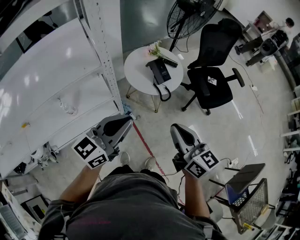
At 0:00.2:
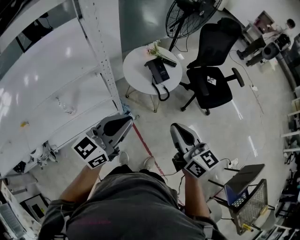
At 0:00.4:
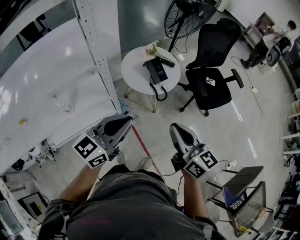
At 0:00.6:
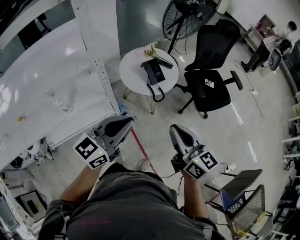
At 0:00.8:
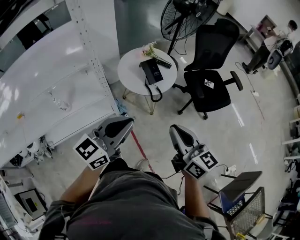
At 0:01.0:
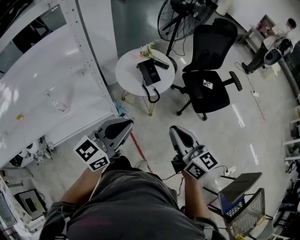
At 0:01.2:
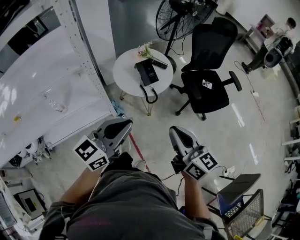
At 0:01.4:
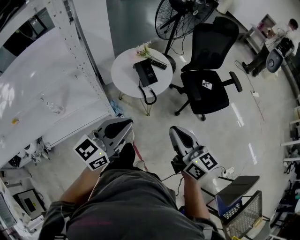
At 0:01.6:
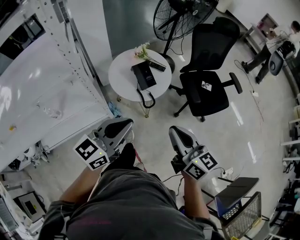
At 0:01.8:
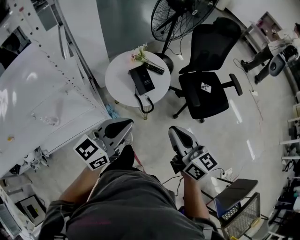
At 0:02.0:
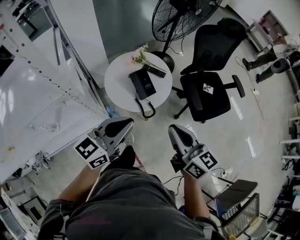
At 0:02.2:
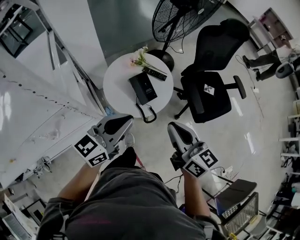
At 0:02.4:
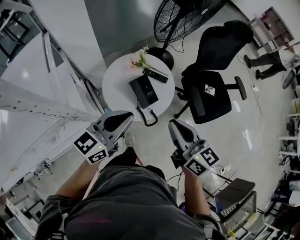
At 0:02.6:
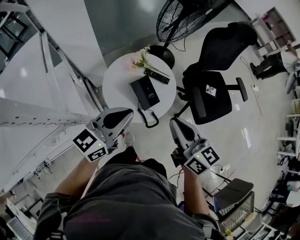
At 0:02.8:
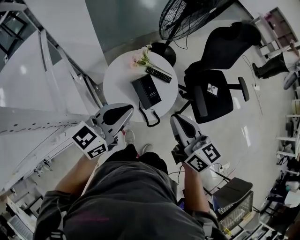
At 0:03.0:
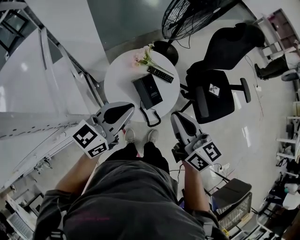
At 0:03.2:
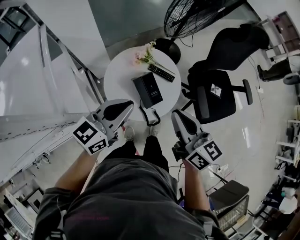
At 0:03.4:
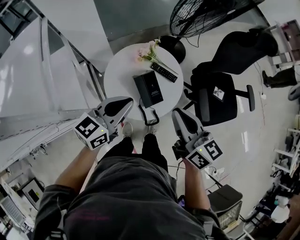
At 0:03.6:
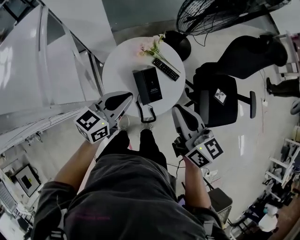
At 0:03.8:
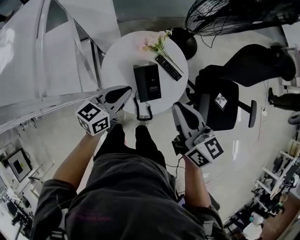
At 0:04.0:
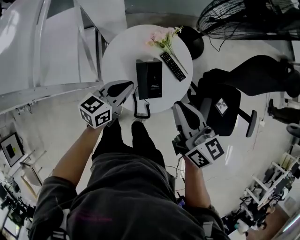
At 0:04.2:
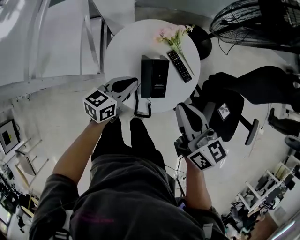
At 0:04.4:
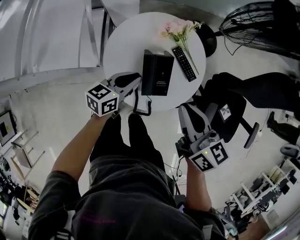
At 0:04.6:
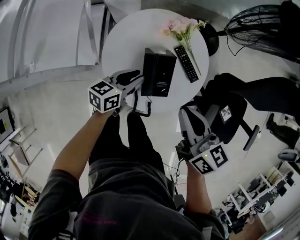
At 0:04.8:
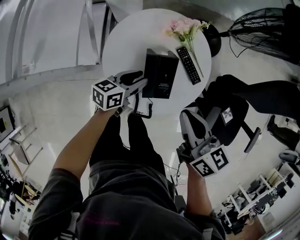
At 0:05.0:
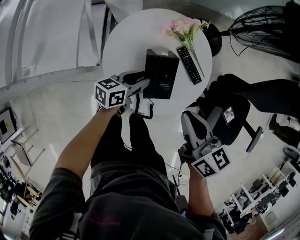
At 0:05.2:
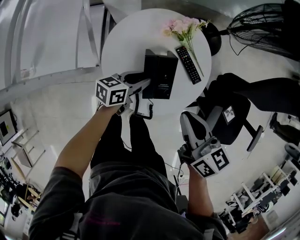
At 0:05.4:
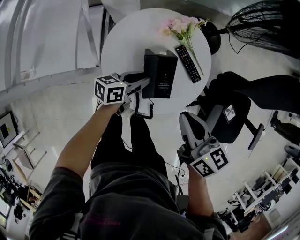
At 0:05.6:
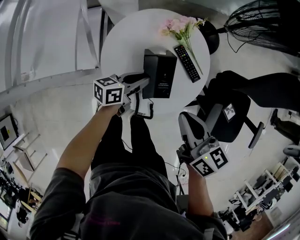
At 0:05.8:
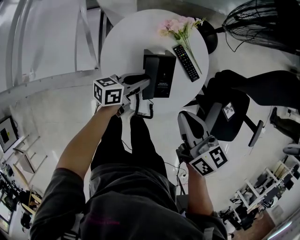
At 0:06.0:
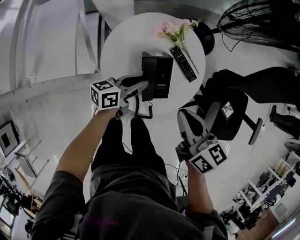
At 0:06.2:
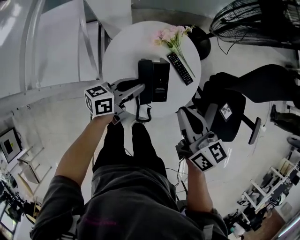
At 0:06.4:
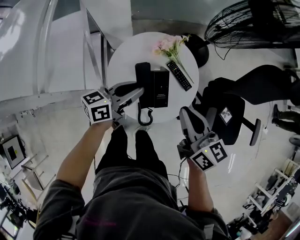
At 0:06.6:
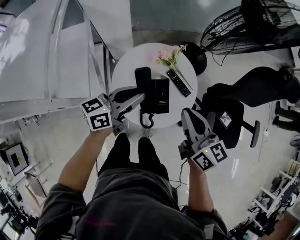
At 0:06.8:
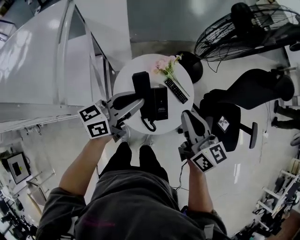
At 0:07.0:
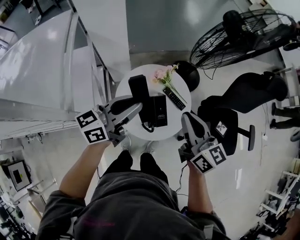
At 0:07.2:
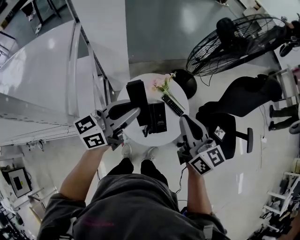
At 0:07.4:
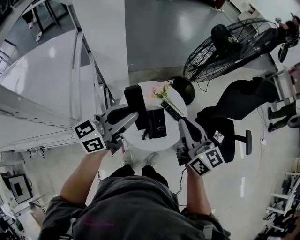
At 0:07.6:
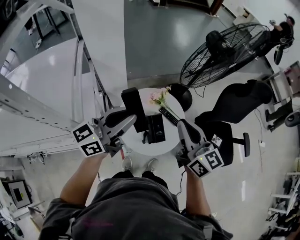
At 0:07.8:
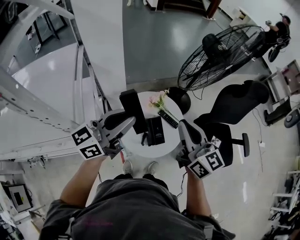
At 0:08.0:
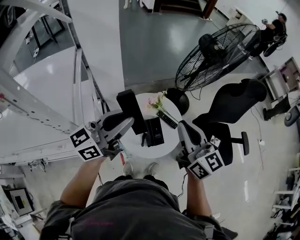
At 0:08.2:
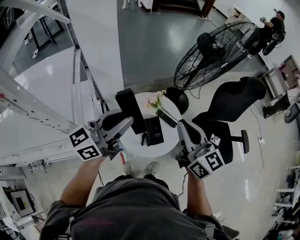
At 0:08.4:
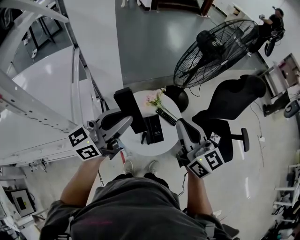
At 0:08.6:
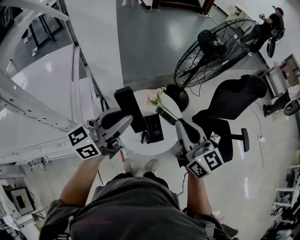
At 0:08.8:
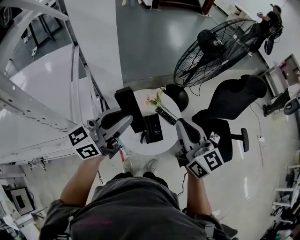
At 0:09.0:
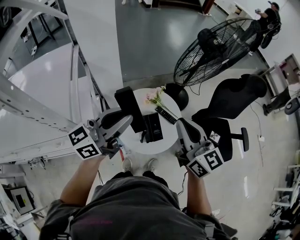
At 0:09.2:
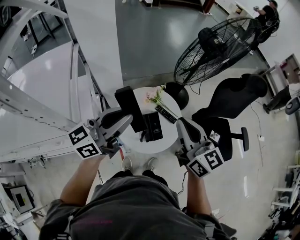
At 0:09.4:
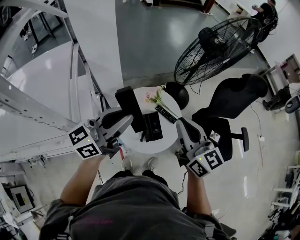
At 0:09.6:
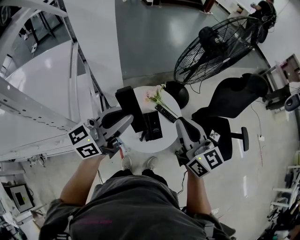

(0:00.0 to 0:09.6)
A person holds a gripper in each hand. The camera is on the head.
0:00.0 - 0:01.6: The grippers both shift to the right and forward by some 15 cm.
0:01.6 - 0:03.2: Both grippers travel together forward, some 30 cm.
0:03.2 - 0:04.8: The right gripper goes some 20 cm downward and forward, and changes its angle by approximately 30 degrees. Meanwhile the left gripper shifts roughly 35 cm downward, swivels roughly 40 degrees, and opens.
0:04.8 - 0:06.4: The right gripper shifts about 5 cm upward; the left gripper shifts about 15 cm upward.
0:06.4 - 0:08.0: Both grippers travel together upward, about 25 cm. The left gripper swivels approximately 30 degrees, while the right gripper rotates roughly 30 degrees.
0:08.0 - 0:09.6: The grippers make only small movements.

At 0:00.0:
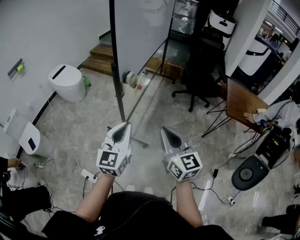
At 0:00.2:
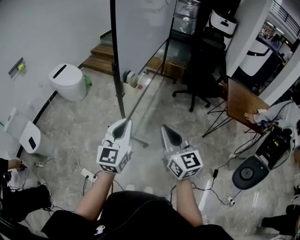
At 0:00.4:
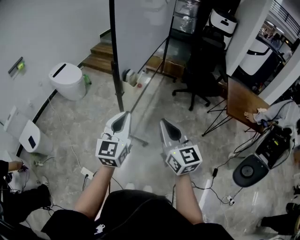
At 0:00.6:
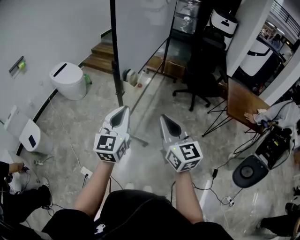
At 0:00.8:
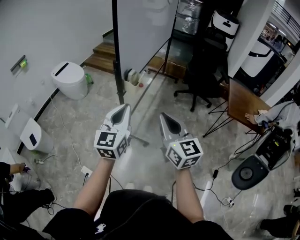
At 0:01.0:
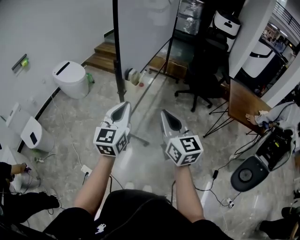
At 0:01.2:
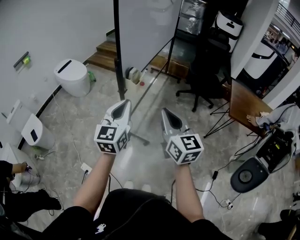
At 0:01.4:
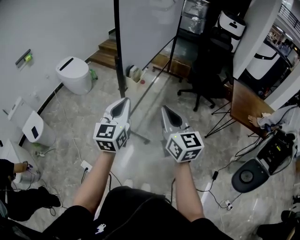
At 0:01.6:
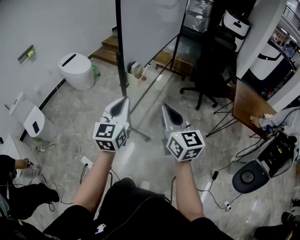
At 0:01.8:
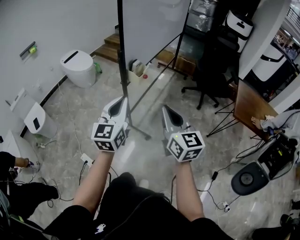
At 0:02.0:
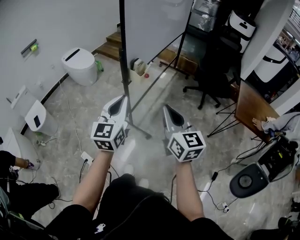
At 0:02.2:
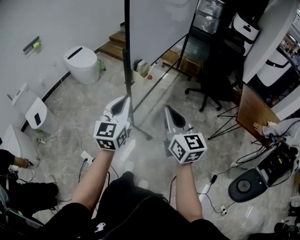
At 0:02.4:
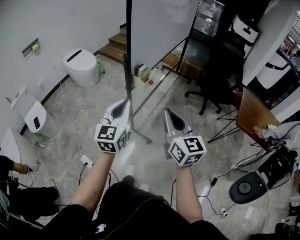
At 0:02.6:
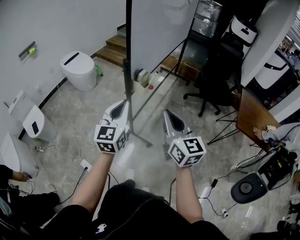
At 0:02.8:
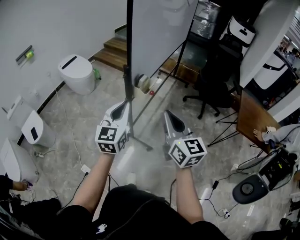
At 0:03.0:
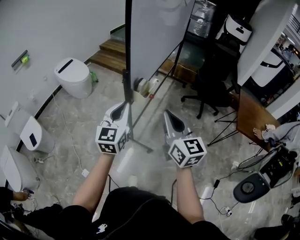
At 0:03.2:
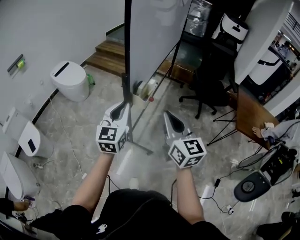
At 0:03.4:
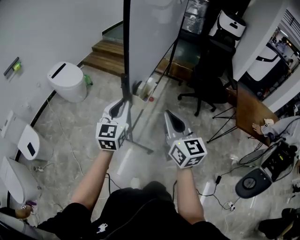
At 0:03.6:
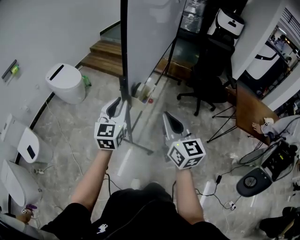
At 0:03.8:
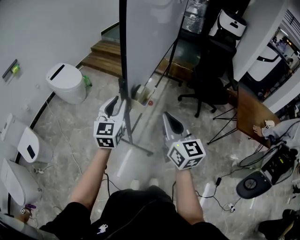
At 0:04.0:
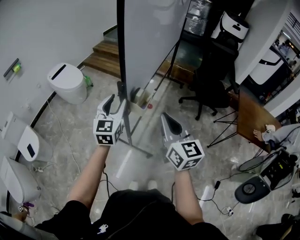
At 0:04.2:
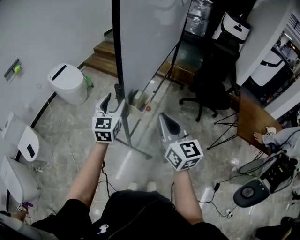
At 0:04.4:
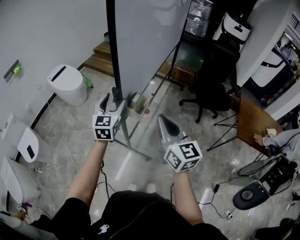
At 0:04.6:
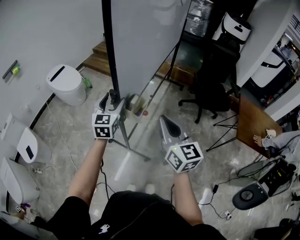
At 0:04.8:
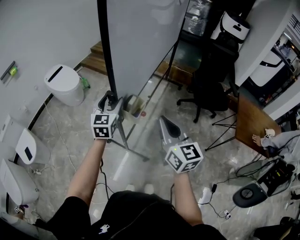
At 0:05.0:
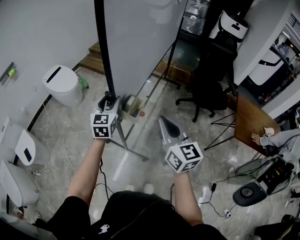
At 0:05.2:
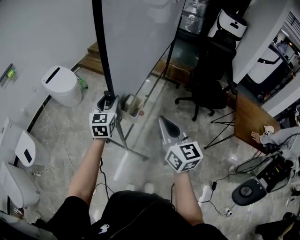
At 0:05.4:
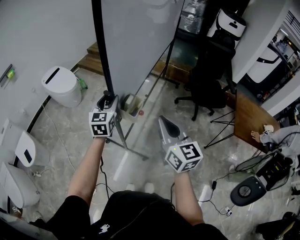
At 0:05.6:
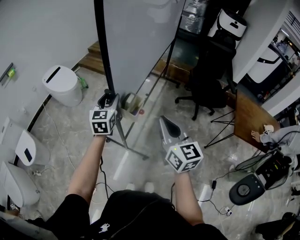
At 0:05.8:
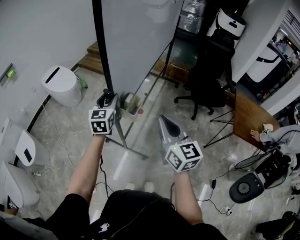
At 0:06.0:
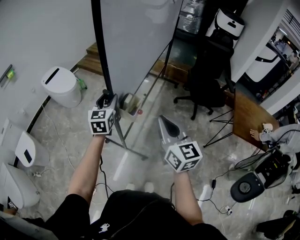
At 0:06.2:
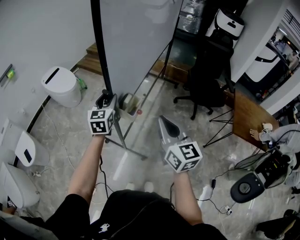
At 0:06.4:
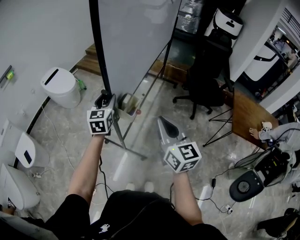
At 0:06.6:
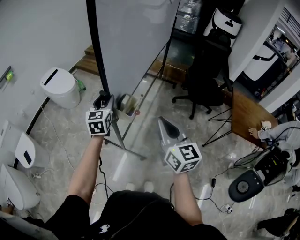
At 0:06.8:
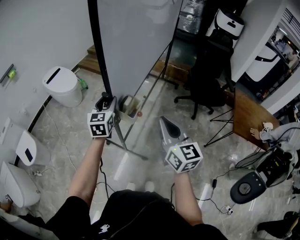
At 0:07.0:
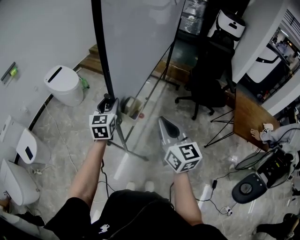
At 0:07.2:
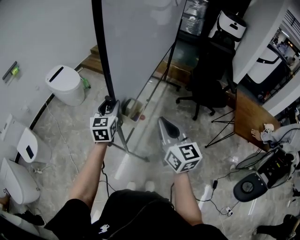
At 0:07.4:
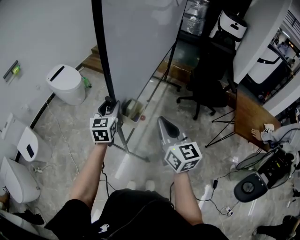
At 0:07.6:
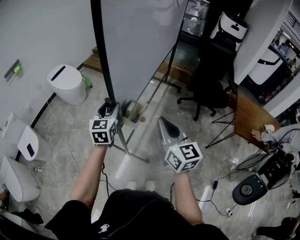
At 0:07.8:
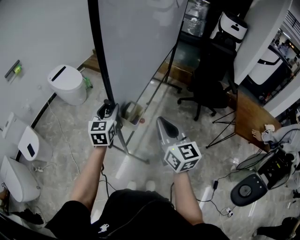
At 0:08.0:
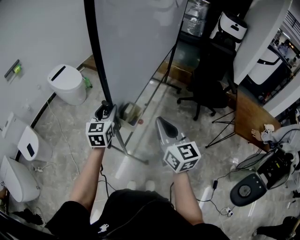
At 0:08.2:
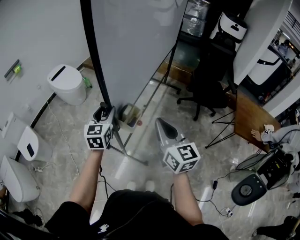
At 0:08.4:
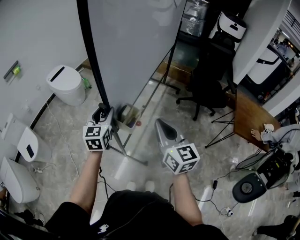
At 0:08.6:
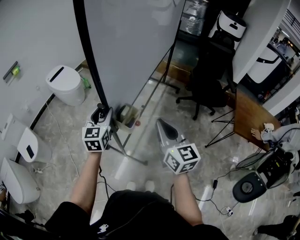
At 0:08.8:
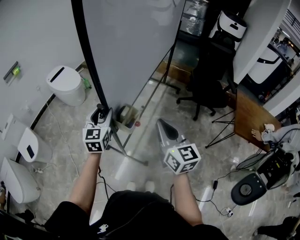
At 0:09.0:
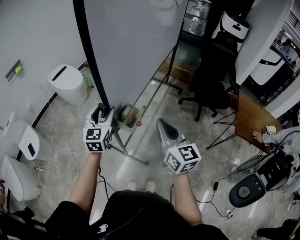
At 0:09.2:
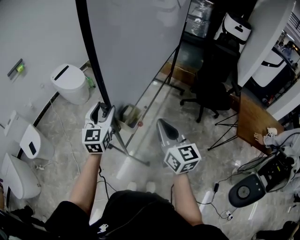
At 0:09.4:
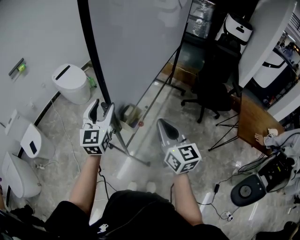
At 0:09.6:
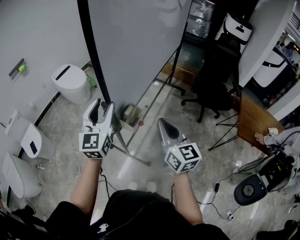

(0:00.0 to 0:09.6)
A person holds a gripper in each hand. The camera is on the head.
0:00.0 - 0:01.6: The right gripper shifts by some 5 cm.
0:01.6 - 0:03.2: The right gripper goes some 15 cm forward and to the left. Meanwhile the left gripper moves forward, some 15 cm.
0:03.2 - 0:04.8: The right gripper goes about 10 cm forward, while the left gripper heads forward, covering roughly 15 cm, and opens.
0:04.8 - 0:06.4: The grippers make only small movements.
0:06.4 - 0:08.0: The left gripper heads backward, covering roughly 10 cm.
0:08.0 - 0:09.6: The left gripper travels upward by approximately 10 cm.

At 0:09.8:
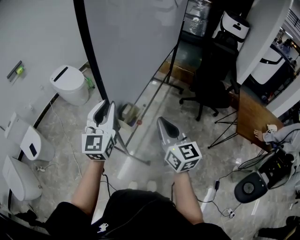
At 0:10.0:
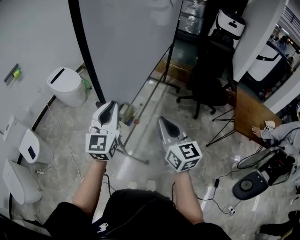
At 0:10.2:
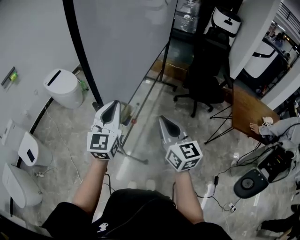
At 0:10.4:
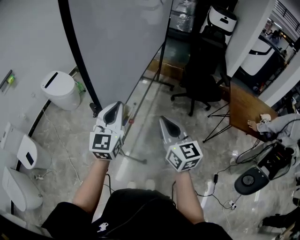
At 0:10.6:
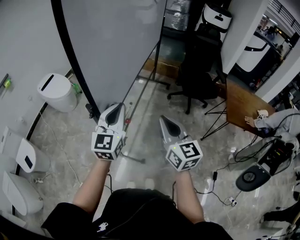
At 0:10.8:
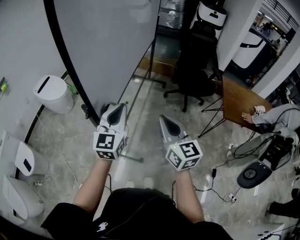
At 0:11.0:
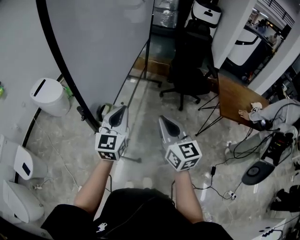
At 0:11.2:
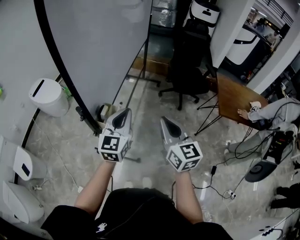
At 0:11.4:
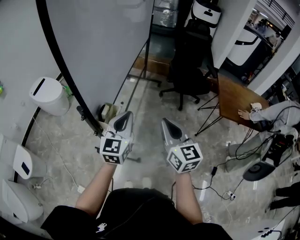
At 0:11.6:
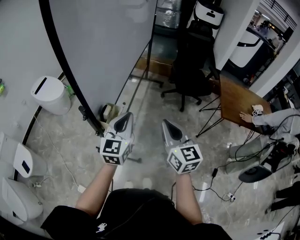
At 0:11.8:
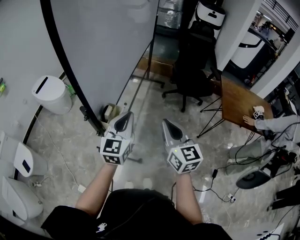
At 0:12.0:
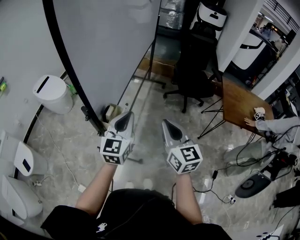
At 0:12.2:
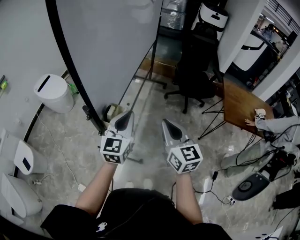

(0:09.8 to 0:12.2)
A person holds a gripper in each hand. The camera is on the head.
0:09.8 - 0:11.0: The left gripper shifts roughly 15 cm to the right. The right gripper is displaced to the right by roughly 10 cm.
0:11.0 - 0:12.2: There are only small adjustments of the grippers.

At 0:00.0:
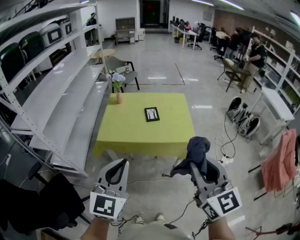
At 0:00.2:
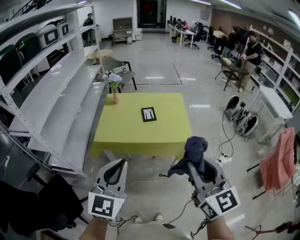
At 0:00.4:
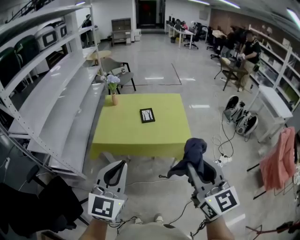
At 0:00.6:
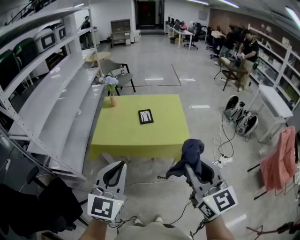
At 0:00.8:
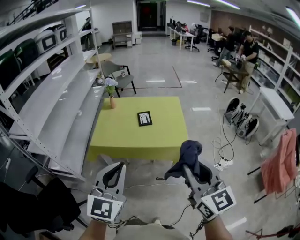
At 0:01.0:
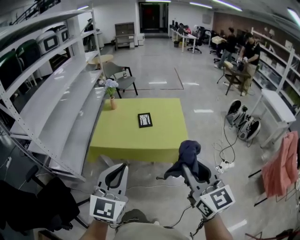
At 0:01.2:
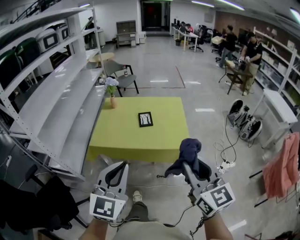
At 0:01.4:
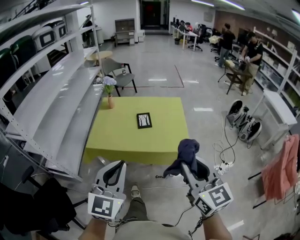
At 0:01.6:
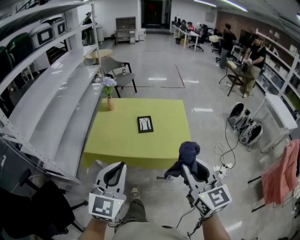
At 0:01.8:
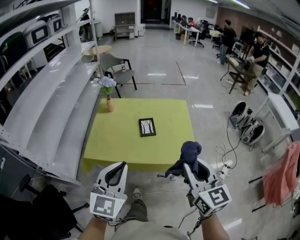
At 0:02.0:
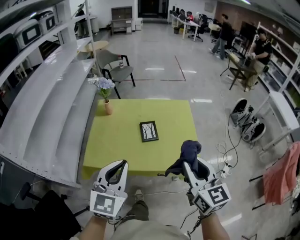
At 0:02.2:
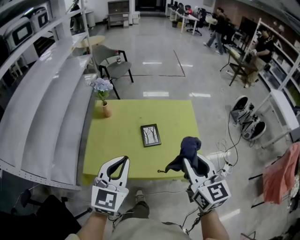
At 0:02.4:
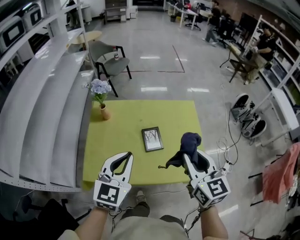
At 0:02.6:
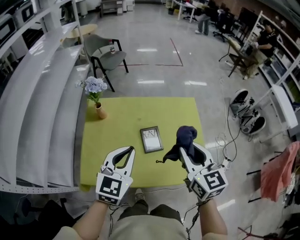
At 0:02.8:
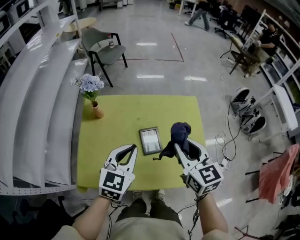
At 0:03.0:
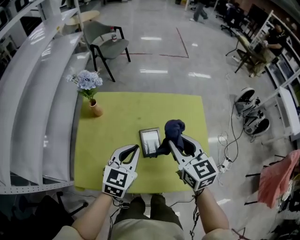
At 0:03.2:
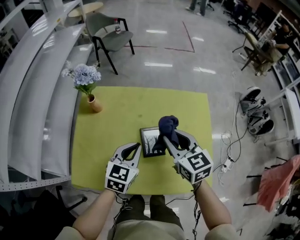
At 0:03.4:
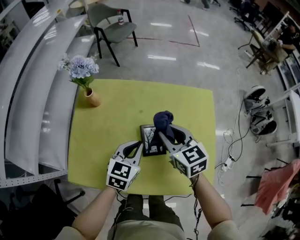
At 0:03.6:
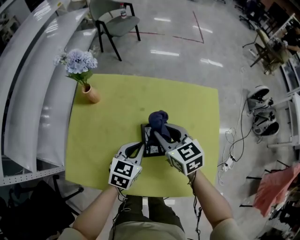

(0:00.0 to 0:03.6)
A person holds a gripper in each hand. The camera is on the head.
0:00.0 - 0:01.8: The left gripper shifts roughly 20 cm forward, while the right gripper shifts roughly 25 cm forward and downward.
0:01.8 - 0:03.6: The two grippers travel together, forward, approximately 40 cm. The grippers both shift downward by roughly 30 cm. The right gripper rotates approximately 30 degrees. The left gripper turns by approximately 40 degrees.
